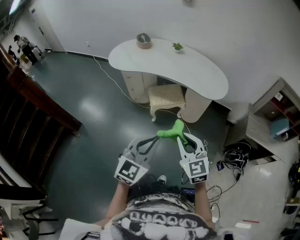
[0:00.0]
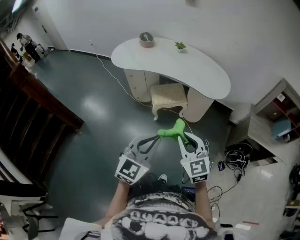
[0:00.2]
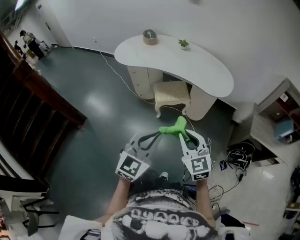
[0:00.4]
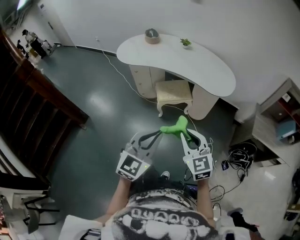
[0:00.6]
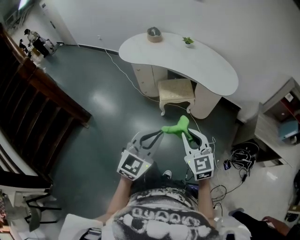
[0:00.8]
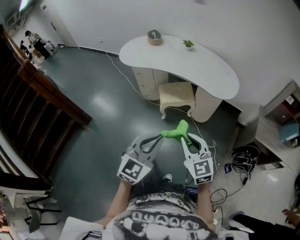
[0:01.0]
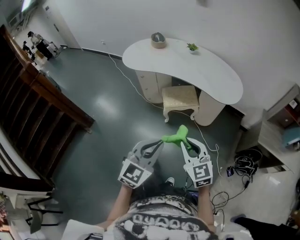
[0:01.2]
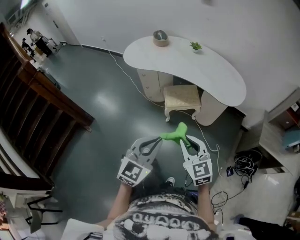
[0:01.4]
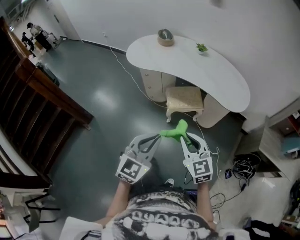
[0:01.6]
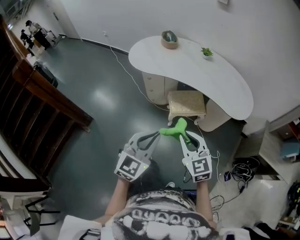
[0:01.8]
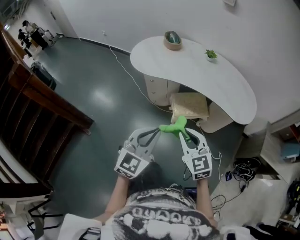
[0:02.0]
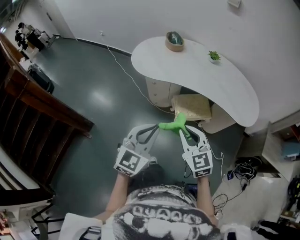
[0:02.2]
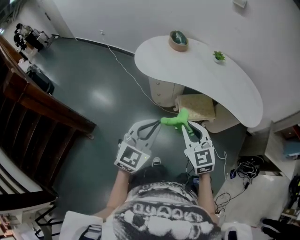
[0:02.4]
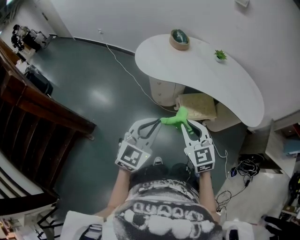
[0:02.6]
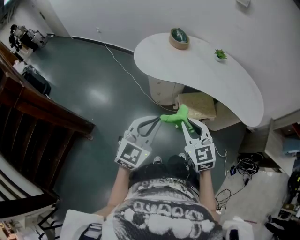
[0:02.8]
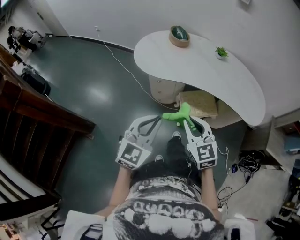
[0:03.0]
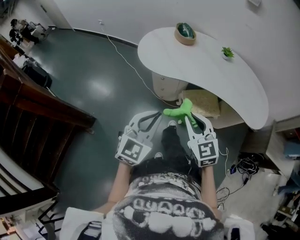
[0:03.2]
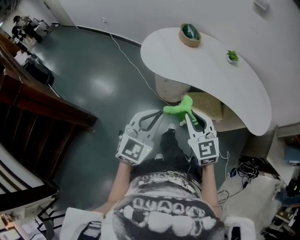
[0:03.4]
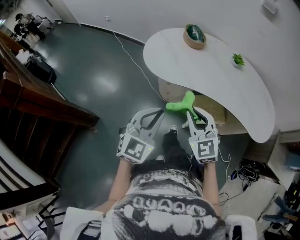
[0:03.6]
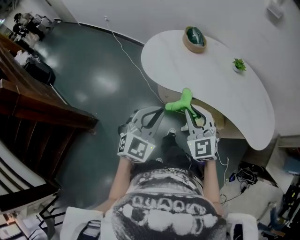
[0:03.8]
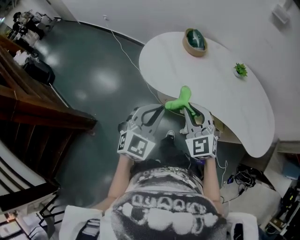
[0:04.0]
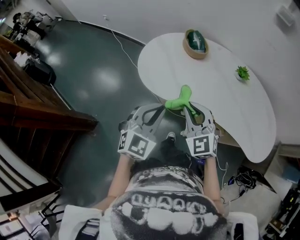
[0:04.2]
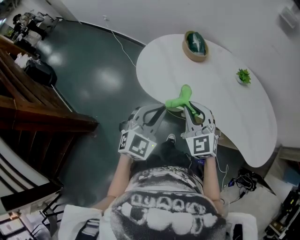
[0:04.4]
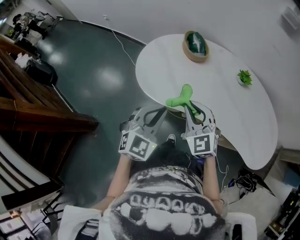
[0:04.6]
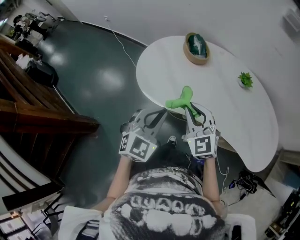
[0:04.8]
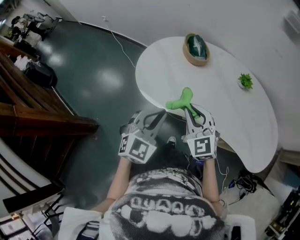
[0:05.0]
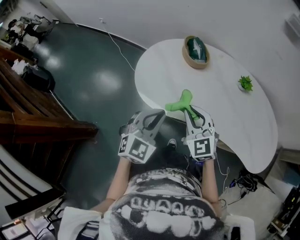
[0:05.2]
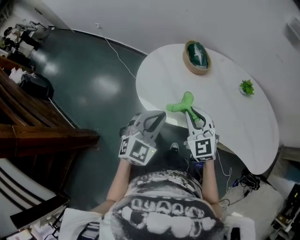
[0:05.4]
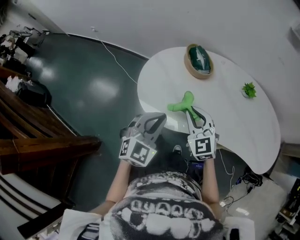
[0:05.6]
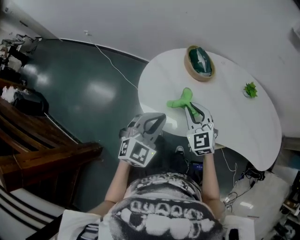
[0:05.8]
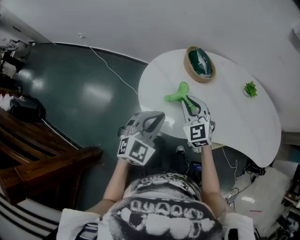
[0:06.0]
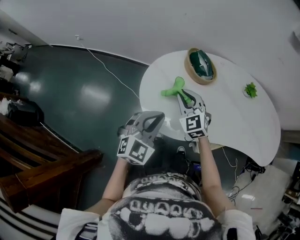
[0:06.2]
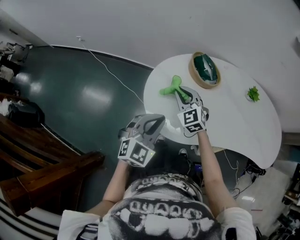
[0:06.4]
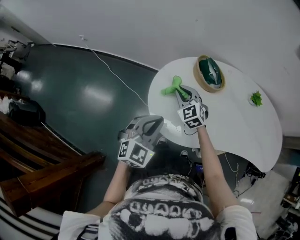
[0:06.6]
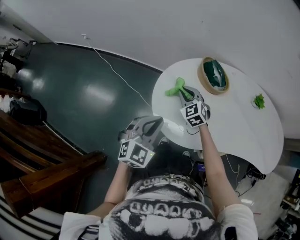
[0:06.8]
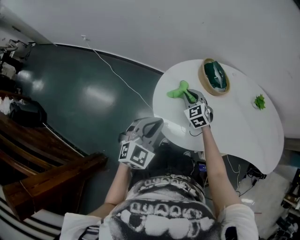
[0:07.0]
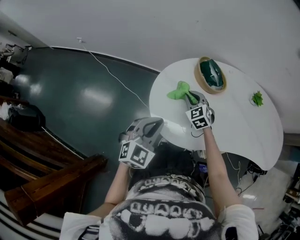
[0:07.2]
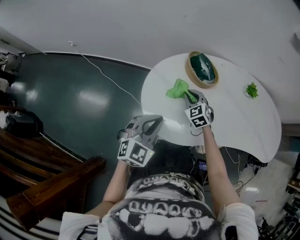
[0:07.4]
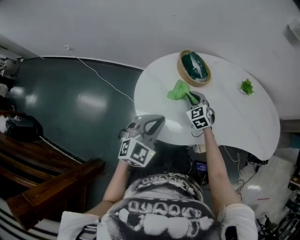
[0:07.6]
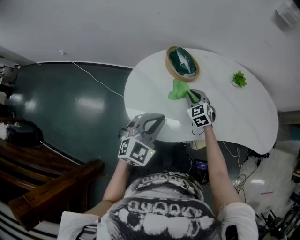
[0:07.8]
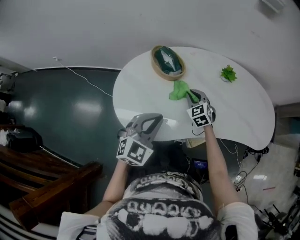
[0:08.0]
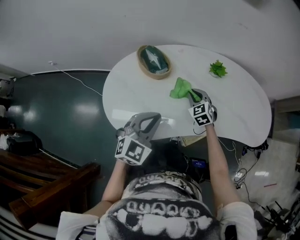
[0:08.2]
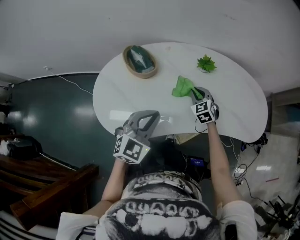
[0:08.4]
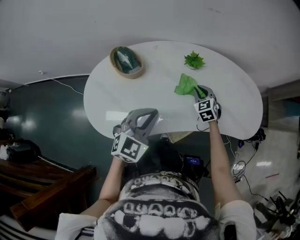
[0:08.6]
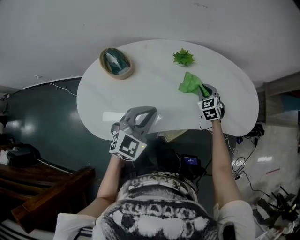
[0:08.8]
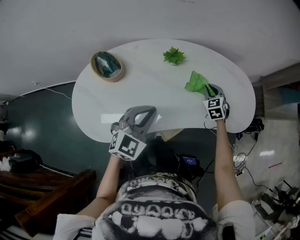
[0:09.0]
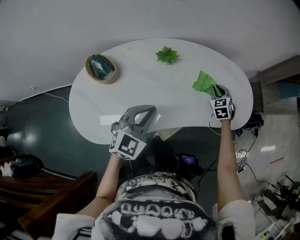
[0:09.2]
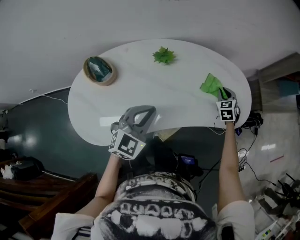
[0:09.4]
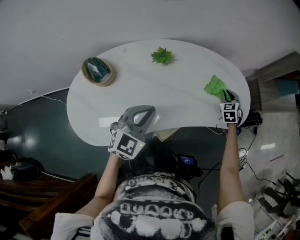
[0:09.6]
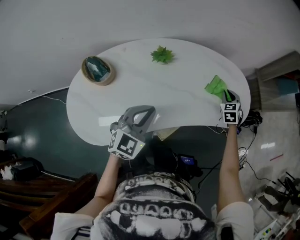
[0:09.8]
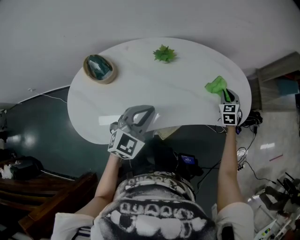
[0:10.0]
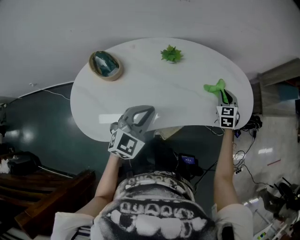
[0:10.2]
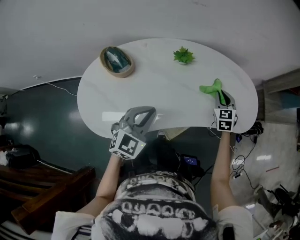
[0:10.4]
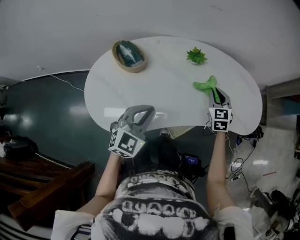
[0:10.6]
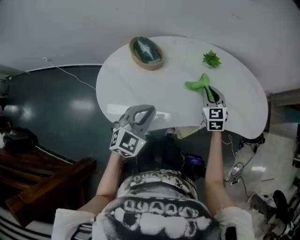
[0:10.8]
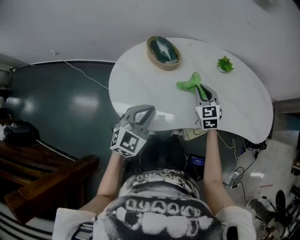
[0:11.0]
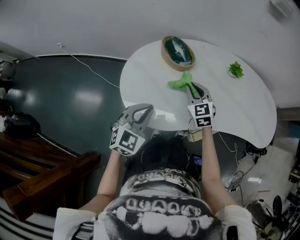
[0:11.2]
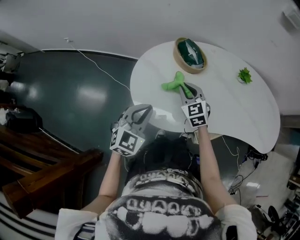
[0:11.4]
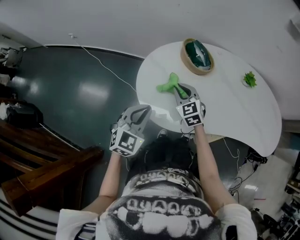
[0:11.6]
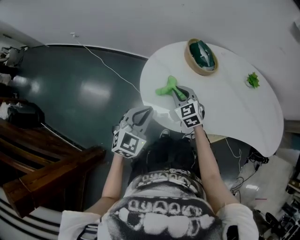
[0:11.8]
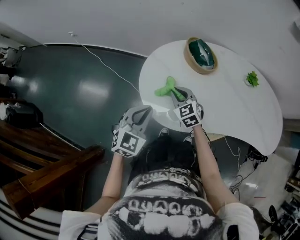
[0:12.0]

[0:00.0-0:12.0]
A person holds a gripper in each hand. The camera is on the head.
0:00.0 to 0:01.6: Both grippers move forward and to the left, roughly 10 cm.
0:01.6 to 0:03.0: Both grippers move forward and to the left, about 30 cm.
0:03.0 to 0:04.4: The grippers both shift forward by approximately 30 cm.
0:04.4 to 0:06.0: Both grippers move forward and to the left, about 25 cm.
0:06.0 to 0:07.6: The left gripper reaches approximately 10 cm to the left, then returns, while the right gripper heads downward and forward, covering about 15 cm, and travels to the left and back again, some 10 cm each way.
0:07.6 to 0:09.0: The right gripper travels to the right by approximately 50 cm, and changes its angle by some 30 degrees. Meanwhile the left gripper is displaced to the right by roughly 35 cm.
0:09.0 to 0:10.4: The left gripper changes place by approximately 5 cm. The right gripper is displaced upward by some 5 cm, and moves roughly 15 cm to the right and comes back.
0:10.4 to 0:12.0: The right gripper changes place by approximately 60 cm, and turns by about 40 degrees. Meanwhile the left gripper moves roughly 40 cm, and swivels approximately 20 degrees.

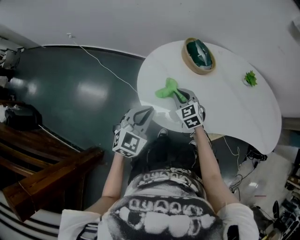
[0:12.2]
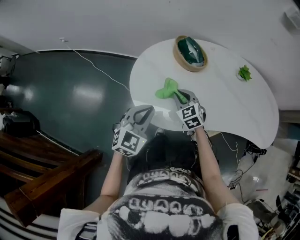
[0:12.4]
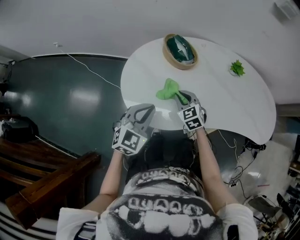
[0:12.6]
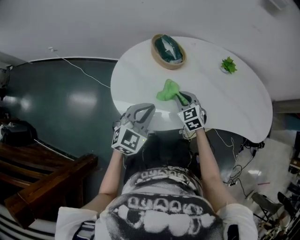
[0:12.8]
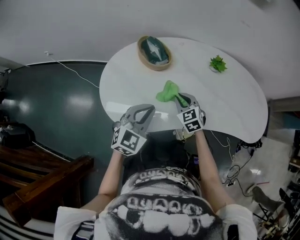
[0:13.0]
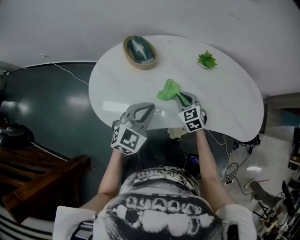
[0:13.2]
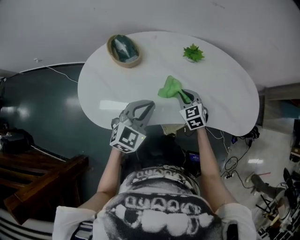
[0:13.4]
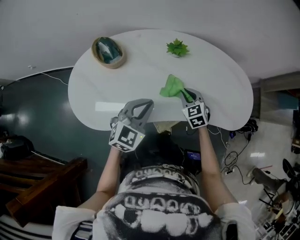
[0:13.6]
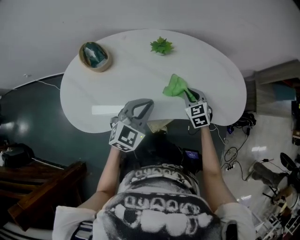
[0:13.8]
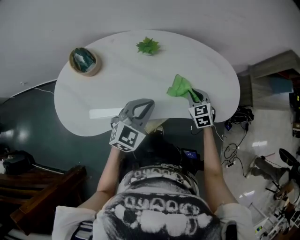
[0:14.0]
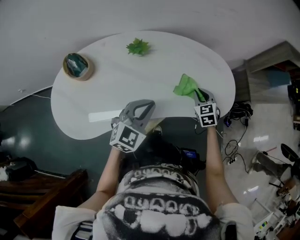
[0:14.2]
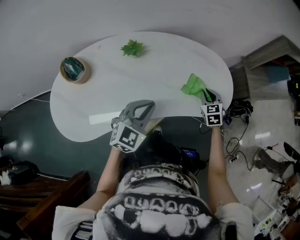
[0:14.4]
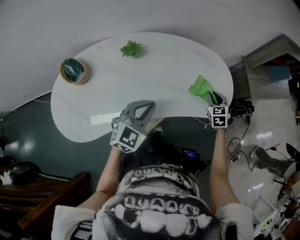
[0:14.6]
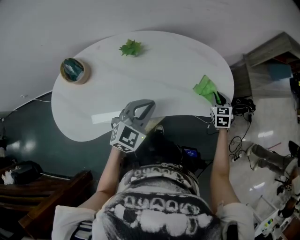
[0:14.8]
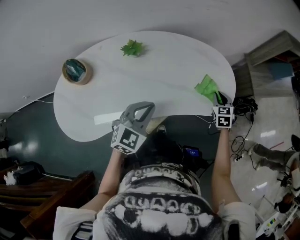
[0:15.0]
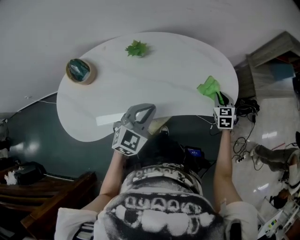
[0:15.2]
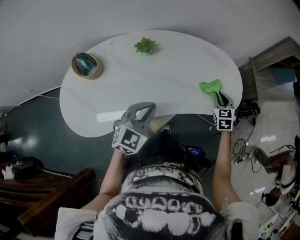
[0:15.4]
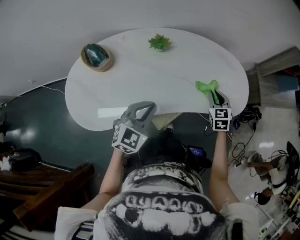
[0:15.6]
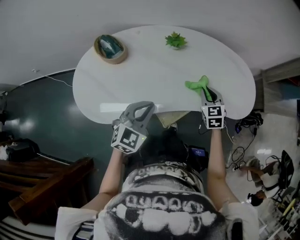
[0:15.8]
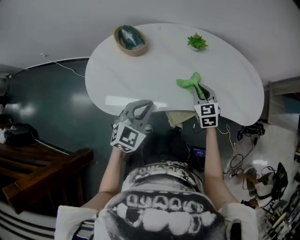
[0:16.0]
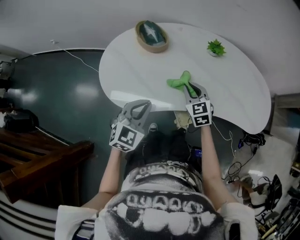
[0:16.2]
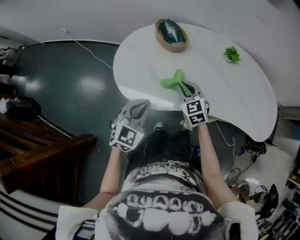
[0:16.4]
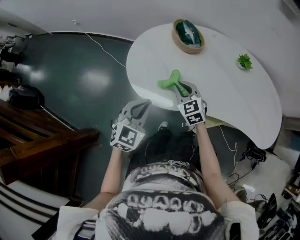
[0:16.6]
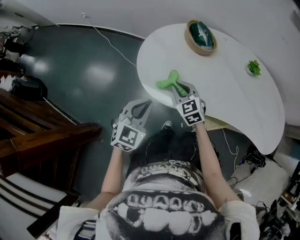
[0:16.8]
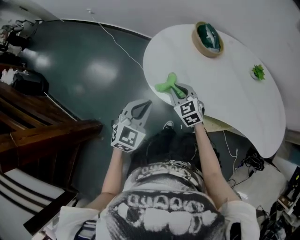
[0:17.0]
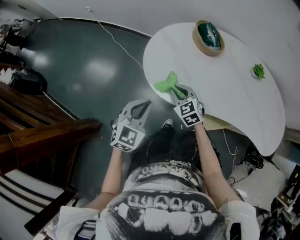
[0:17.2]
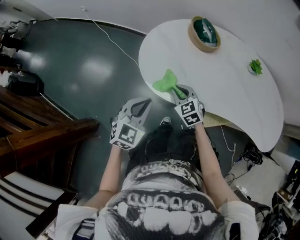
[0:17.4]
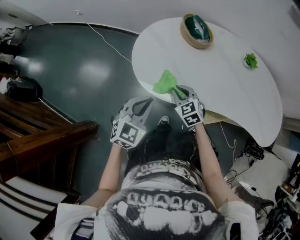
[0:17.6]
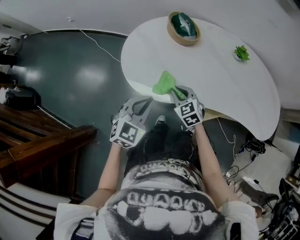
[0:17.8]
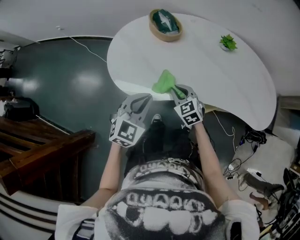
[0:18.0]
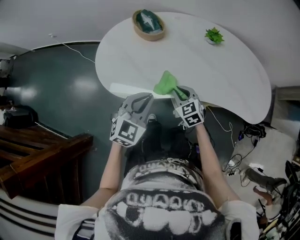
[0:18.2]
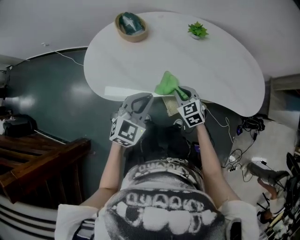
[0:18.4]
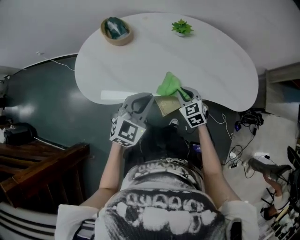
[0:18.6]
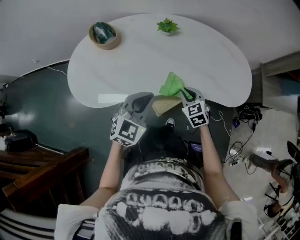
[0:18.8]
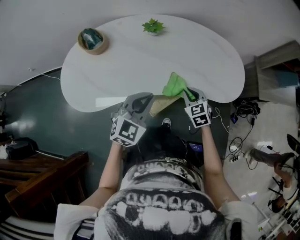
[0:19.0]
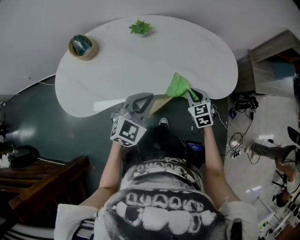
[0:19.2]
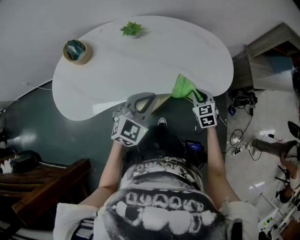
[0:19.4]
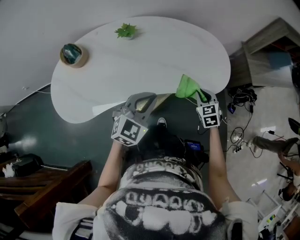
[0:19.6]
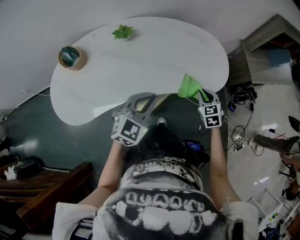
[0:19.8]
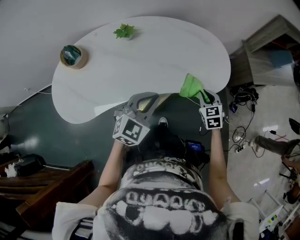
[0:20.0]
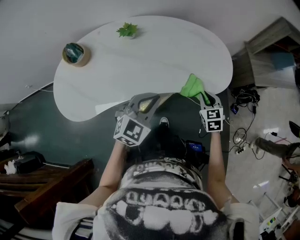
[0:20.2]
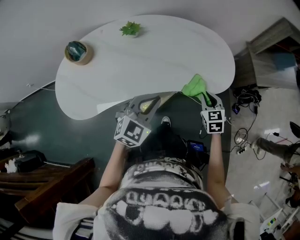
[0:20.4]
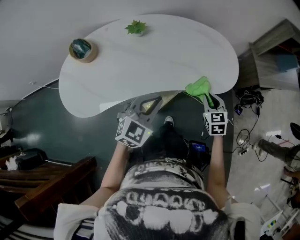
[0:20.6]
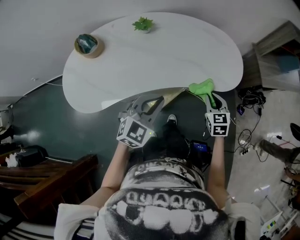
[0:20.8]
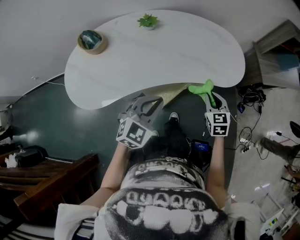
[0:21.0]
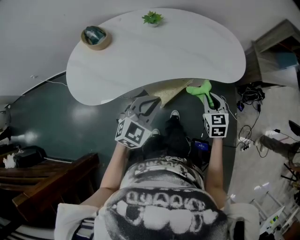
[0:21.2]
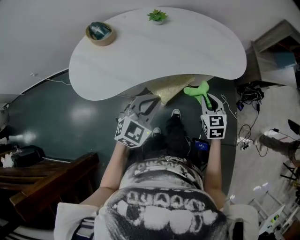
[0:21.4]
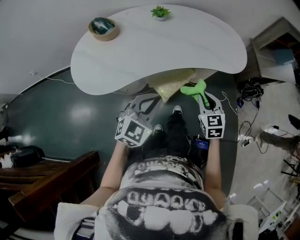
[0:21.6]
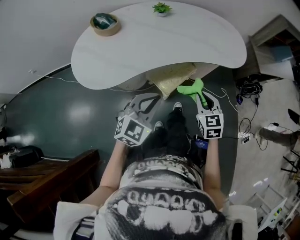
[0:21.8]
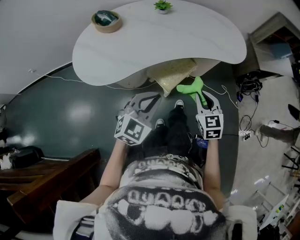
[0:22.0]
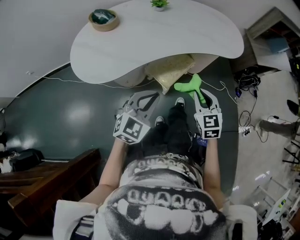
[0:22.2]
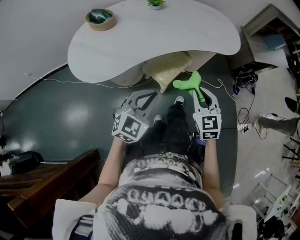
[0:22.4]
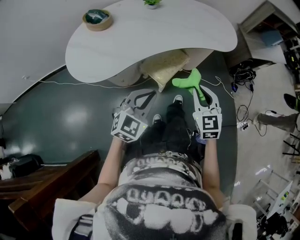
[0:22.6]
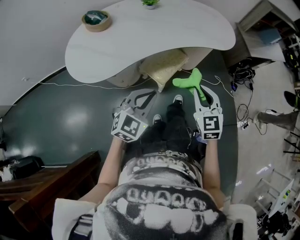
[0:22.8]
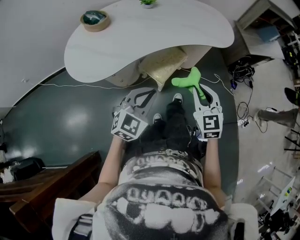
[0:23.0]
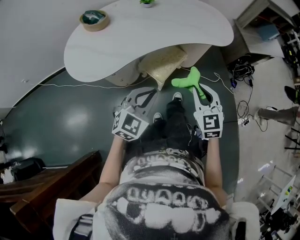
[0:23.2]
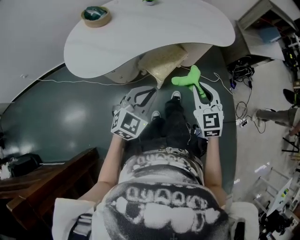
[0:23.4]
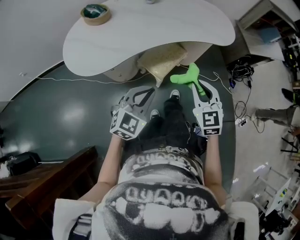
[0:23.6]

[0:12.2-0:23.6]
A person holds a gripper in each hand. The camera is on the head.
0:12.2 to 0:13.6: Both grippers are carried to the right, approximately 40 cm.
0:13.6 to 0:15.0: The right gripper travels to the right by roughly 35 cm, and turns by about 30 degrees, while the left gripper heads to the right, covering about 15 cm.
0:15.0 to 0:16.4: Both grippers are carried approximately 50 cm. The right gripper rotates roughly 50 degrees. Meanwhile the left gripper rotates some 30 degrees.
0:16.4 to 0:17.8: The left gripper travels to the left and back again, some 15 cm each way. Meanwhile the right gripper is displaced to the left and backward by some 10 cm.
0:17.8 to 0:19.4: The pair of grippers is taken approximately 50 cm. The left gripper swivels roughly 30 degrees; the right gripper rotates roughly 40 degrees.
0:19.4 to 0:20.8: The right gripper changes place by about 5 cm.
0:20.8 to 0:22.2: The two grippers go approximately 25 cm backward and to the left.
0:22.2 to 0:23.6: The right gripper changes place by about 5 cm.
